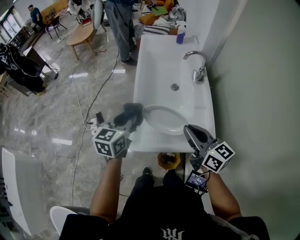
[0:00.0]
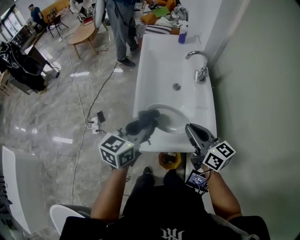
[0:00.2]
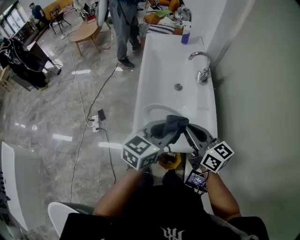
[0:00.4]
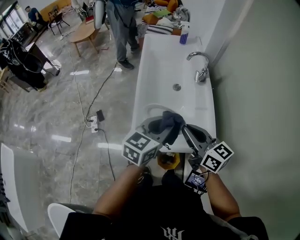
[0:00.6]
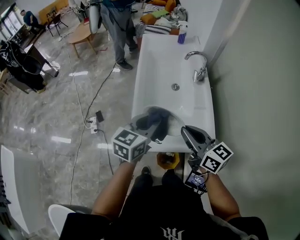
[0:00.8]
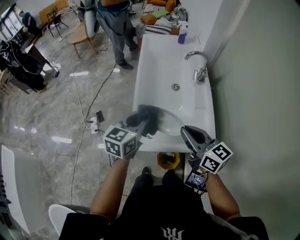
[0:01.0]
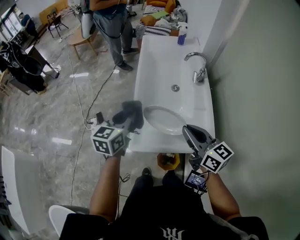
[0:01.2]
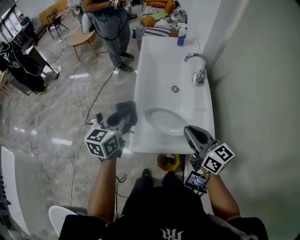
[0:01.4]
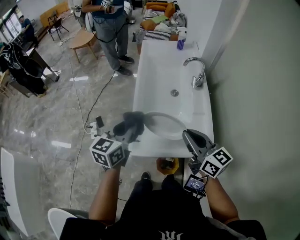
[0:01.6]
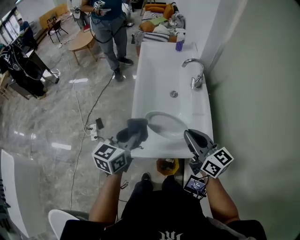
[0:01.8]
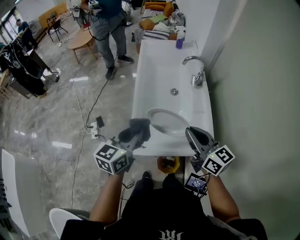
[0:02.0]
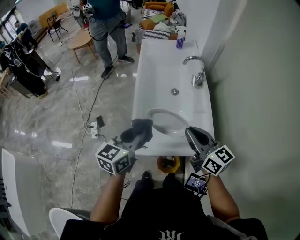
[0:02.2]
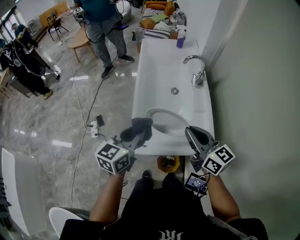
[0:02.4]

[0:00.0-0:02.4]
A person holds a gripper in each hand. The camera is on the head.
0:00.0 to 0:01.2: The left gripper goes to the right and returns, roughly 15 cm each way.
0:01.2 to 0:02.4: The left gripper heads backward, covering some 5 cm.

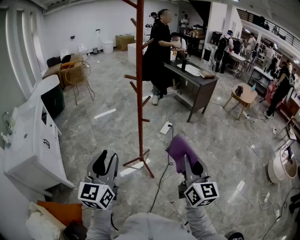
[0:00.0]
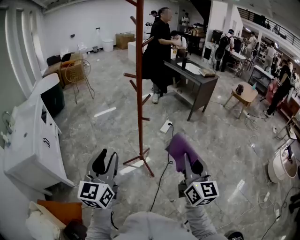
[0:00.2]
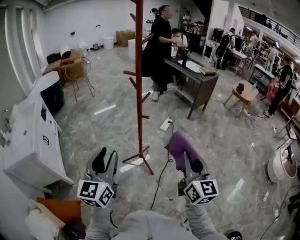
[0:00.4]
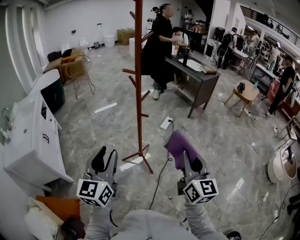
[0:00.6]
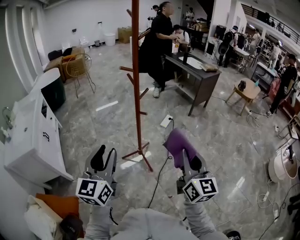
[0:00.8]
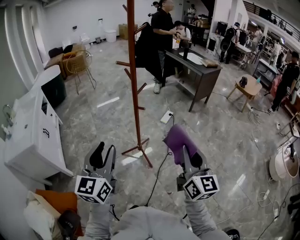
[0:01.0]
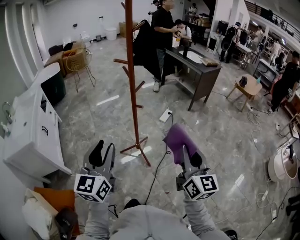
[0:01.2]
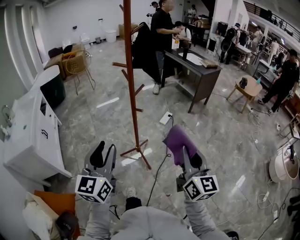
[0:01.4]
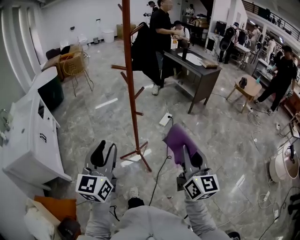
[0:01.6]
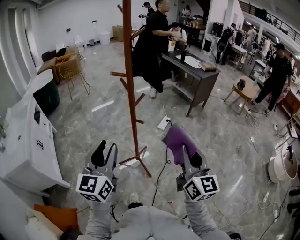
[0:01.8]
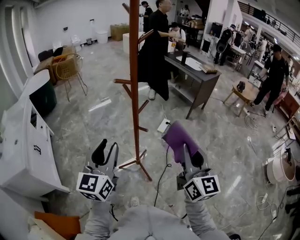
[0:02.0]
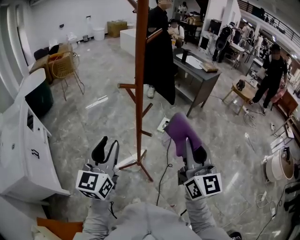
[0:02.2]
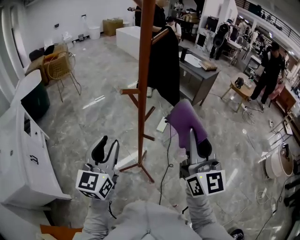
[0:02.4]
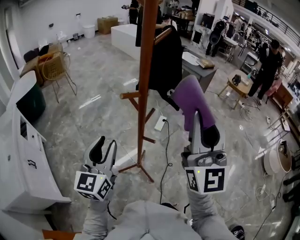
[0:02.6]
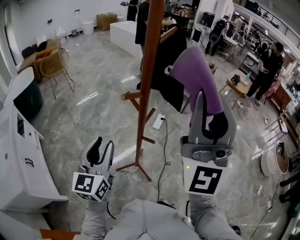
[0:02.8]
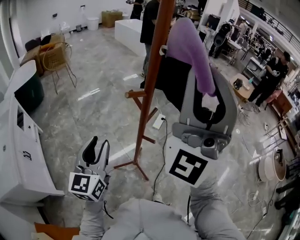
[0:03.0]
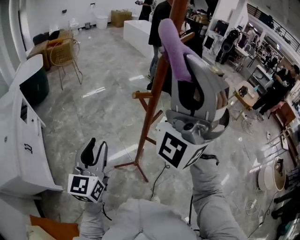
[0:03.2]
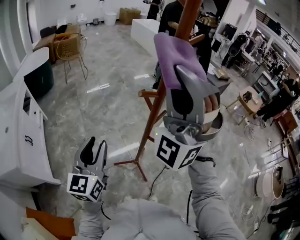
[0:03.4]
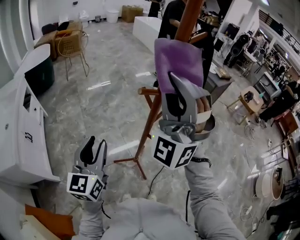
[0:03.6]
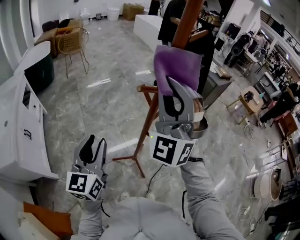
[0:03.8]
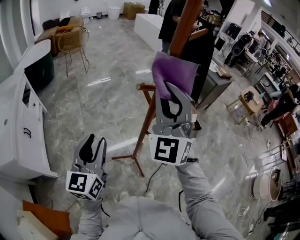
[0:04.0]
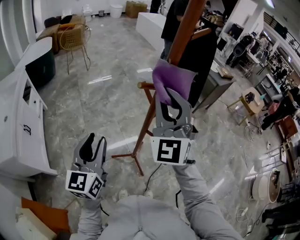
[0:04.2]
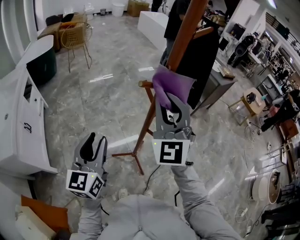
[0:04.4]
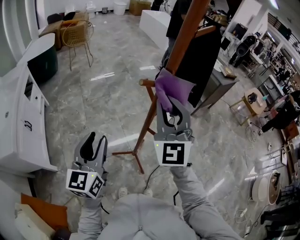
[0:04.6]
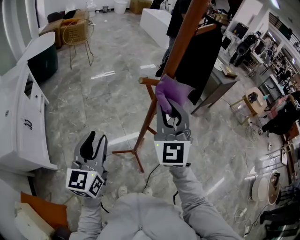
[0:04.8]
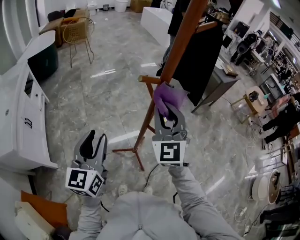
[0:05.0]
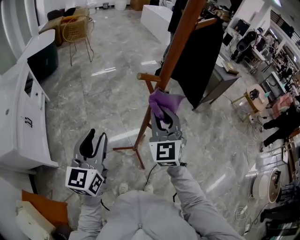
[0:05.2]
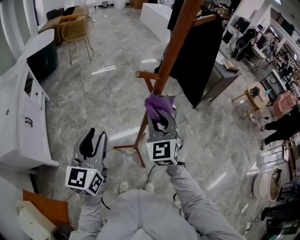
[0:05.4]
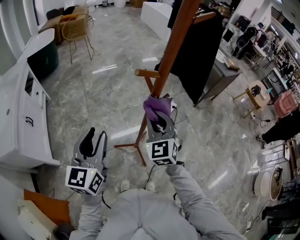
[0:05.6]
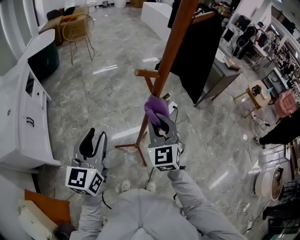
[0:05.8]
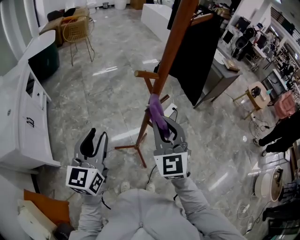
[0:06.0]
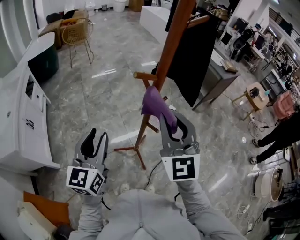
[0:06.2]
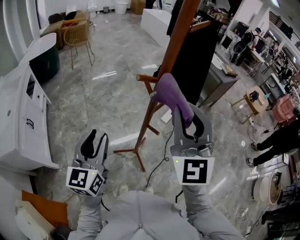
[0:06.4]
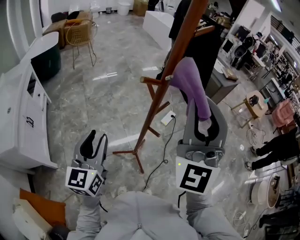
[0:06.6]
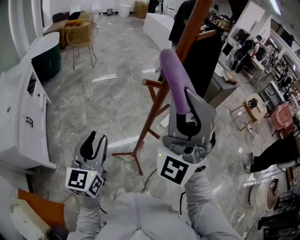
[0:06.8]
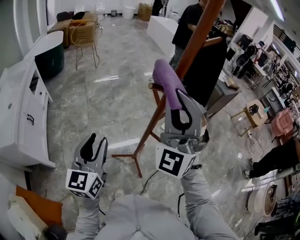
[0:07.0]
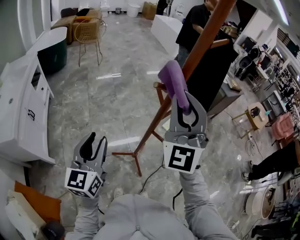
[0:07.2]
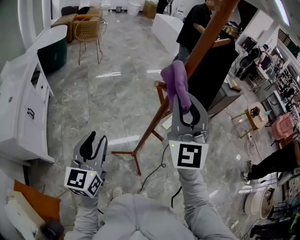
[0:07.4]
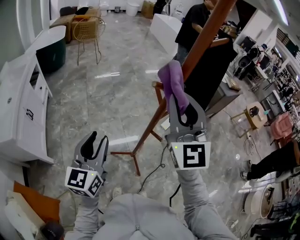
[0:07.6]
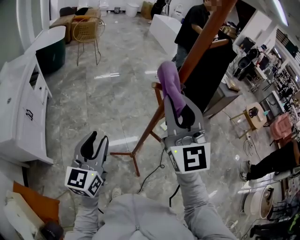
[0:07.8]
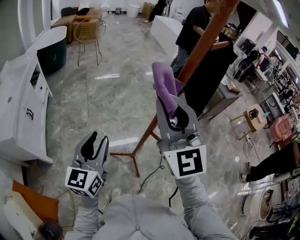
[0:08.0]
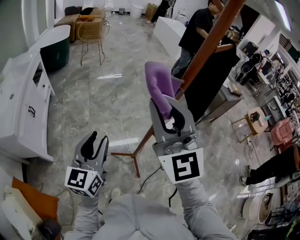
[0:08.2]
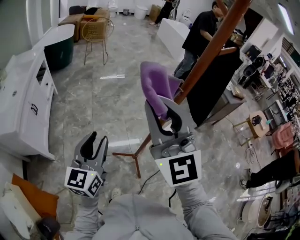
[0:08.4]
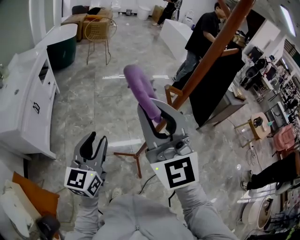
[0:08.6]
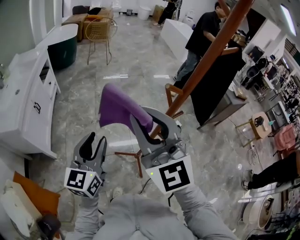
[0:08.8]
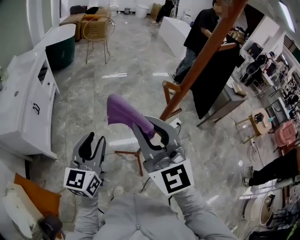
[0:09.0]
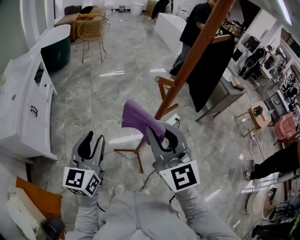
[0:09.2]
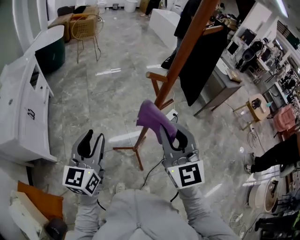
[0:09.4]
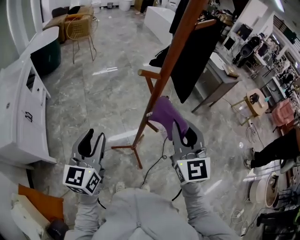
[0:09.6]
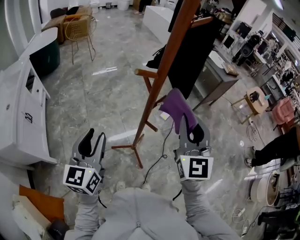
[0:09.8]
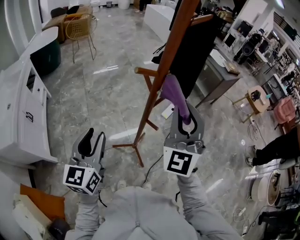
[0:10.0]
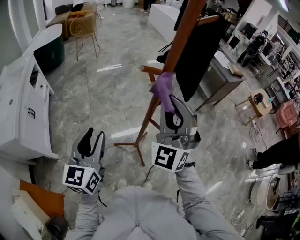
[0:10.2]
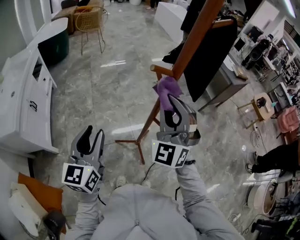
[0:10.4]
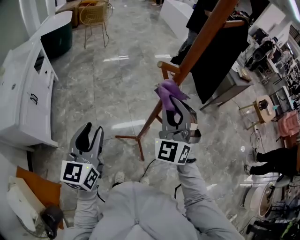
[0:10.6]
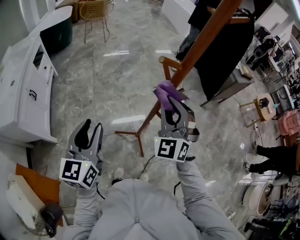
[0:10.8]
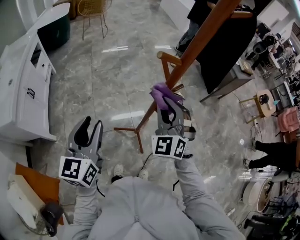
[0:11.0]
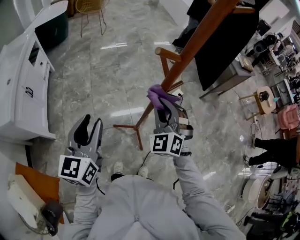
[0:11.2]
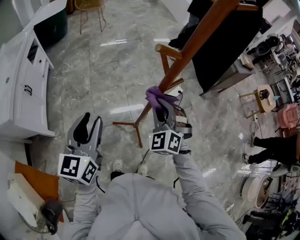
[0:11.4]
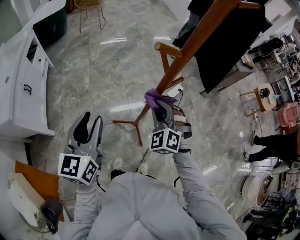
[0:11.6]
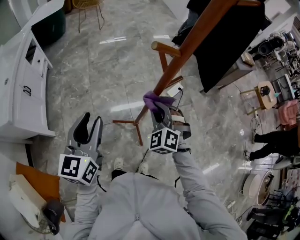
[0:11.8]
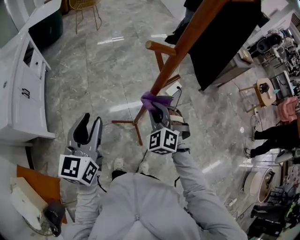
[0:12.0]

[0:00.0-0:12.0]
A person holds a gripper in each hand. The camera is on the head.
0:00.0 to 0:01.6: The right gripper heads forward, covering some 5 cm. Meanwhile the left gripper is displaced forward and to the right by some 5 cm.
0:01.6 to 0:03.0: The left gripper travels forward and to the left by about 25 cm. The right gripper shifts some 40 cm upward, to the left and forward, and twists approximately 70 degrees counterclockwise, seen from behind.
0:03.0 to 0:04.4: The right gripper shifts about 25 cm downward and forward, and angles its fingers downward, by roughly 40 degrees.
0:04.4 to 0:06.0: The right gripper heads downward, covering about 10 cm.
0:06.0 to 0:07.6: The right gripper heads upward, covering about 15 cm, and rotates approximately 20 degrees.
0:07.6 to 0:09.0: The right gripper moves to the left and backward, roughly 15 cm, and turns by roughly 20 degrees.
0:09.0 to 0:10.4: The right gripper shifts roughly 15 cm to the right, forward and downward, and changes its angle by roughly 40 degrees.
0:10.4 to 0:12.0: The right gripper is displaced downward by approximately 20 cm, and points its fingers some 40 degrees further downward.

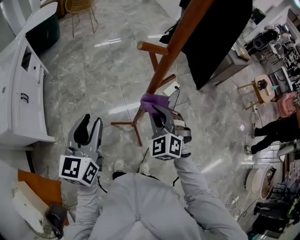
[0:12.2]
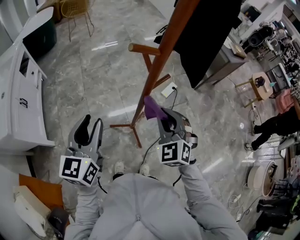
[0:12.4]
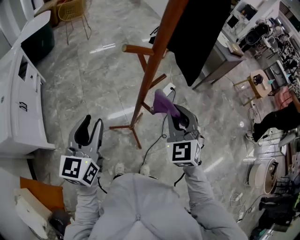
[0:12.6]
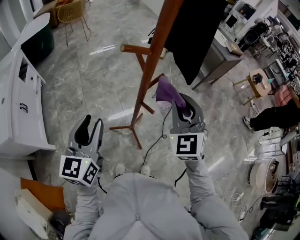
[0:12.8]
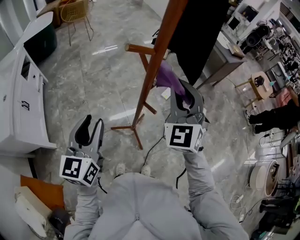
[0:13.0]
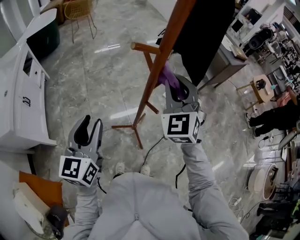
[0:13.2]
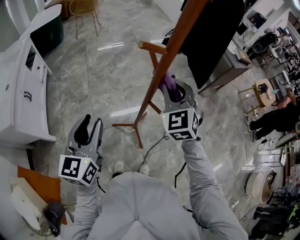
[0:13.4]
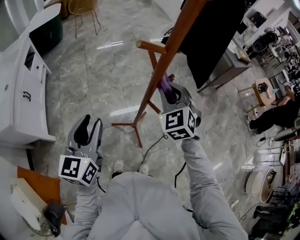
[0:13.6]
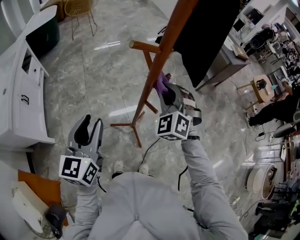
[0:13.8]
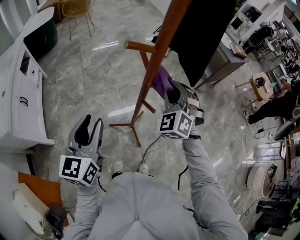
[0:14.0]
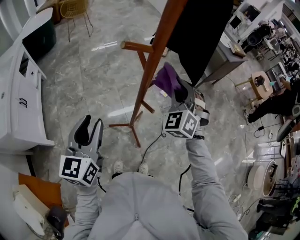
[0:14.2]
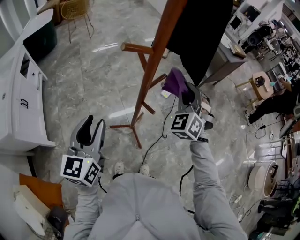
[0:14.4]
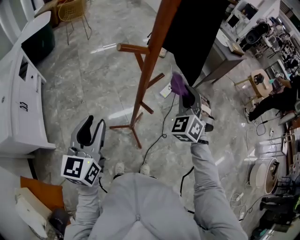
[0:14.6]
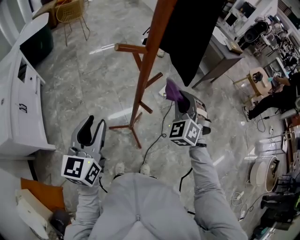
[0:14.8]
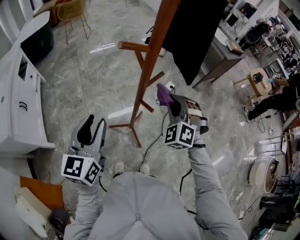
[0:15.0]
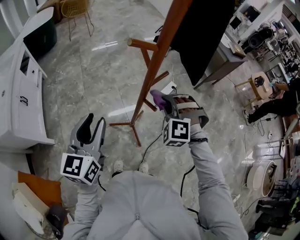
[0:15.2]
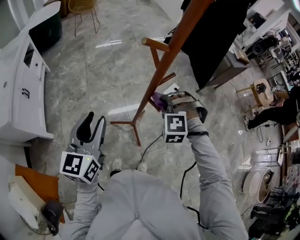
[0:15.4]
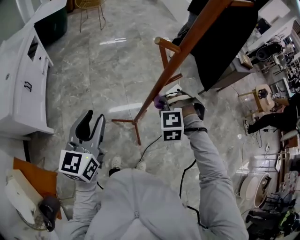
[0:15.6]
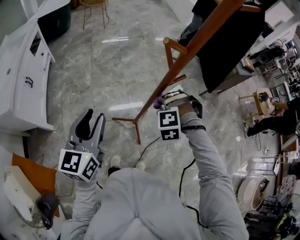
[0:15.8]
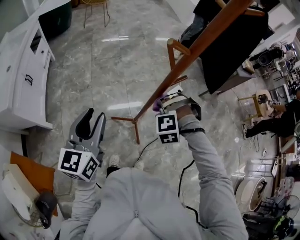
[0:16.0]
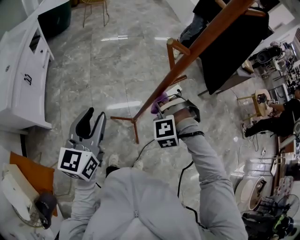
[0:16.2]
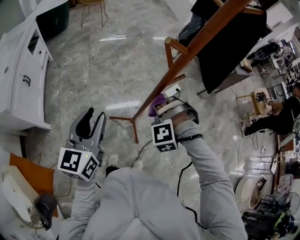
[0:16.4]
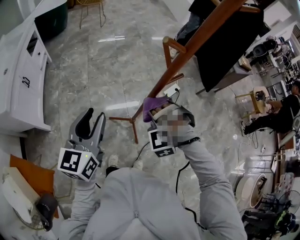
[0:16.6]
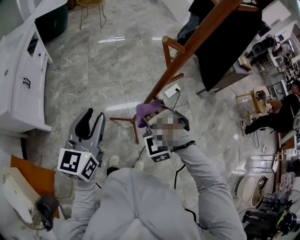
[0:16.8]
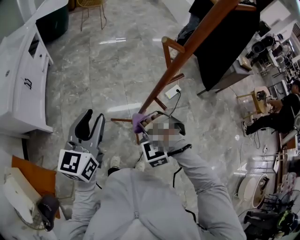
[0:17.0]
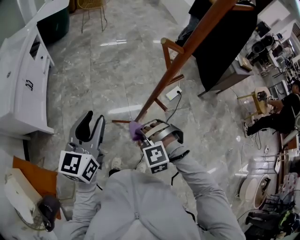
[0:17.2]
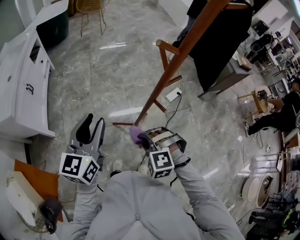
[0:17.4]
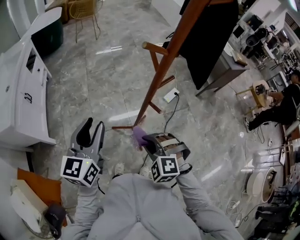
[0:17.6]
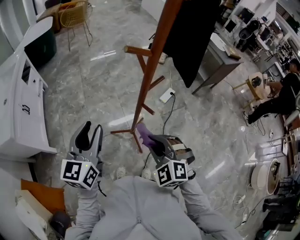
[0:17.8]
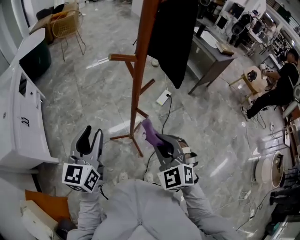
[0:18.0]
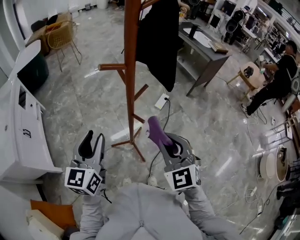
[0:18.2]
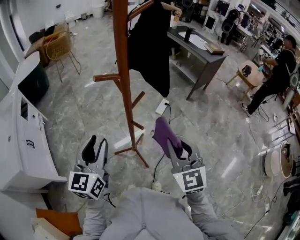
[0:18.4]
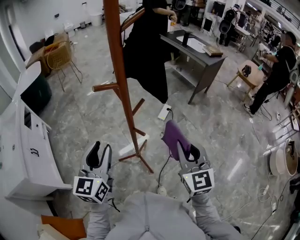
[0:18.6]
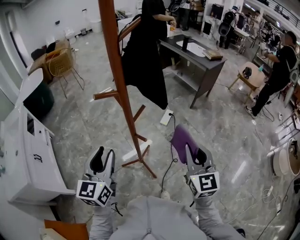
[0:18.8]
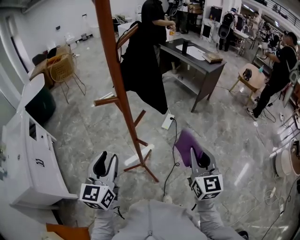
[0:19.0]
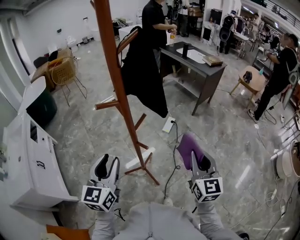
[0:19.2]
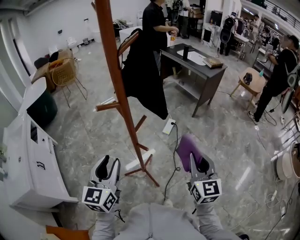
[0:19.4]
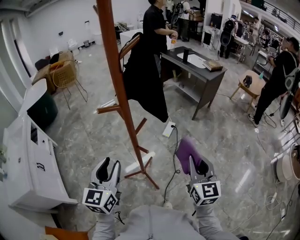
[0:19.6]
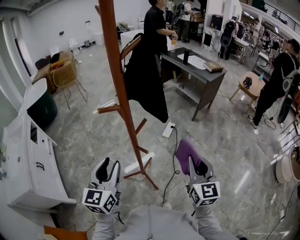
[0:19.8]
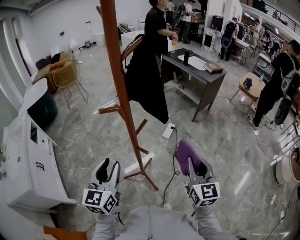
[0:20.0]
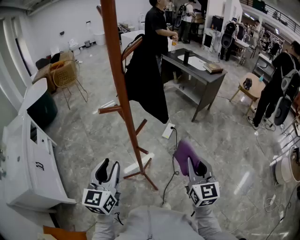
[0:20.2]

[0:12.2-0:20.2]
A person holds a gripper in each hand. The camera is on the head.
0:12.2 to 0:13.8: The right gripper is displaced upward and forward by approximately 10 cm.
0:13.8 to 0:15.4: The right gripper moves downward, roughly 5 cm, moves roughly 10 cm to the right and comes back, and rotates about 50 degrees.
0:15.4 to 0:17.0: The right gripper is displaced backward, to the left and downward by approximately 15 cm, and rotates some 20 degrees.
0:17.0 to 0:18.6: The right gripper heads to the right and upward, covering roughly 30 cm, and twists some 90 degrees clockwise, seen from behind. Meanwhile the left gripper travels to the right by roughly 10 cm.
0:18.6 to 0:20.2: The grippers move only a little.

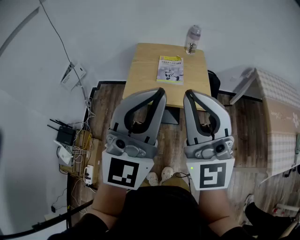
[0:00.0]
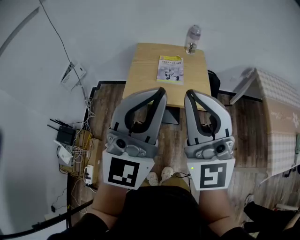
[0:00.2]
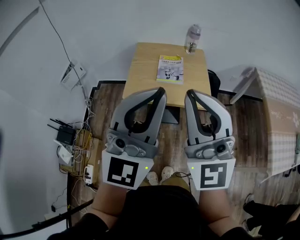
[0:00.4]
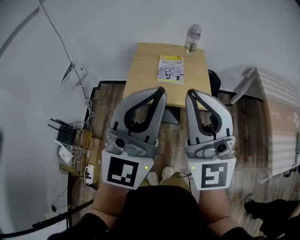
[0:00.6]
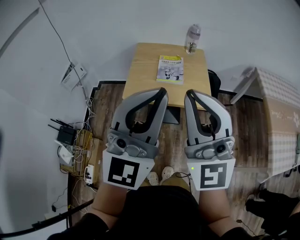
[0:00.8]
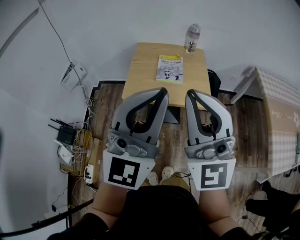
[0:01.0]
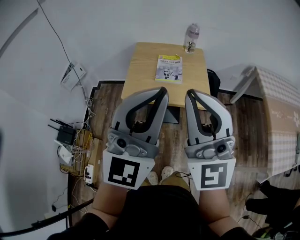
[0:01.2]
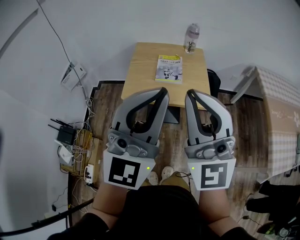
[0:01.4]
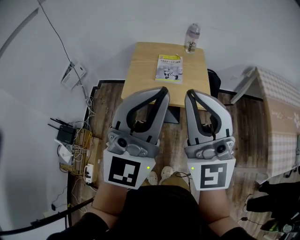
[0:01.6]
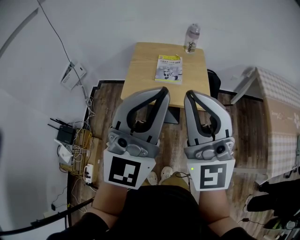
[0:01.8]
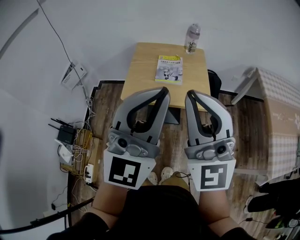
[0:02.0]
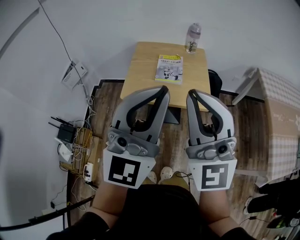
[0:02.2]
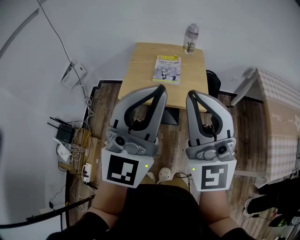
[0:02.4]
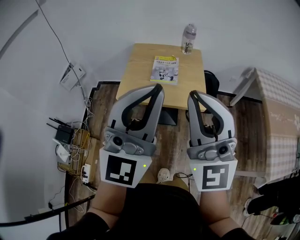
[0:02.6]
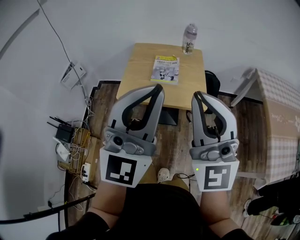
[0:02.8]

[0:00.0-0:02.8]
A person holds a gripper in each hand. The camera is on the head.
0:00.0 to 0:01.4: The grippers make only small movements.
0:01.4 to 0:02.8: The right gripper shifts approximately 5 cm to the right.
